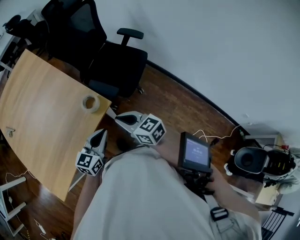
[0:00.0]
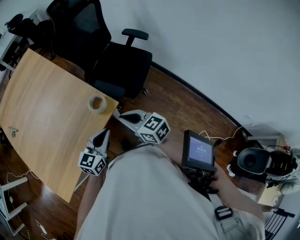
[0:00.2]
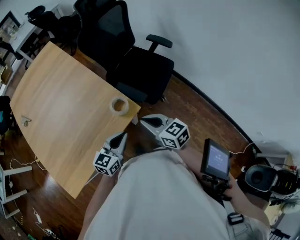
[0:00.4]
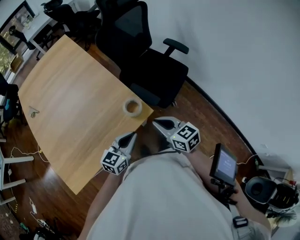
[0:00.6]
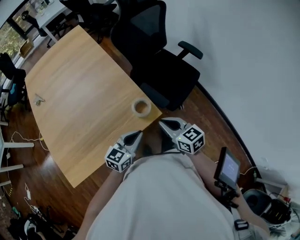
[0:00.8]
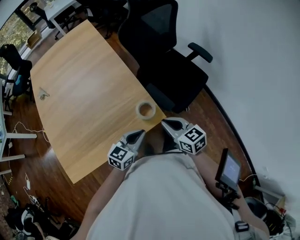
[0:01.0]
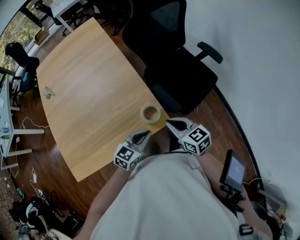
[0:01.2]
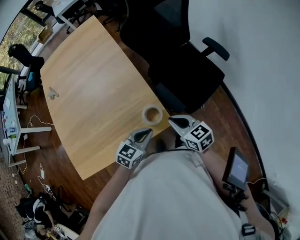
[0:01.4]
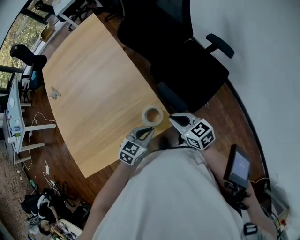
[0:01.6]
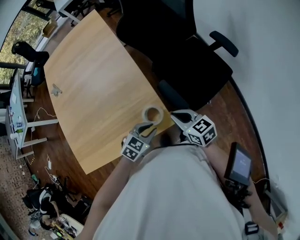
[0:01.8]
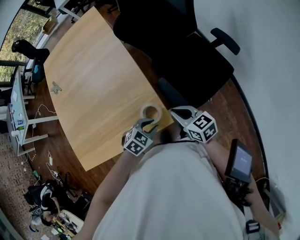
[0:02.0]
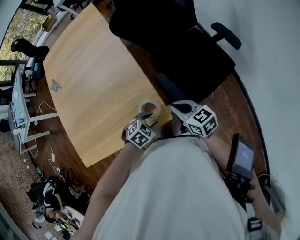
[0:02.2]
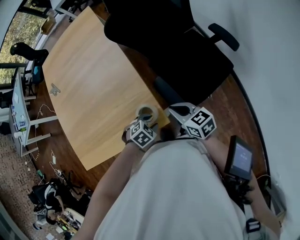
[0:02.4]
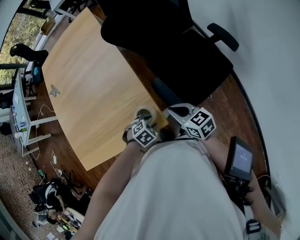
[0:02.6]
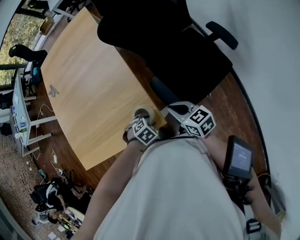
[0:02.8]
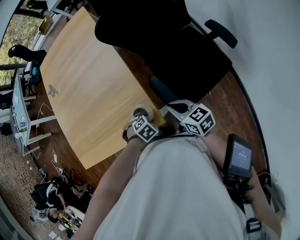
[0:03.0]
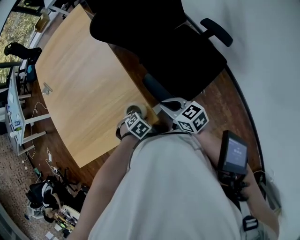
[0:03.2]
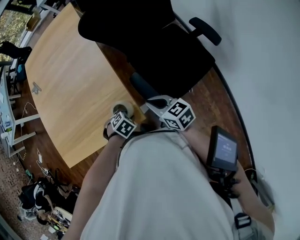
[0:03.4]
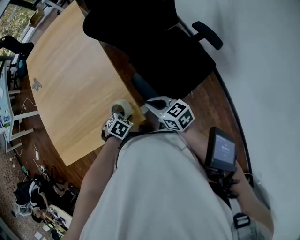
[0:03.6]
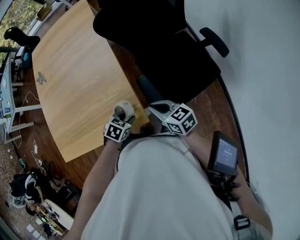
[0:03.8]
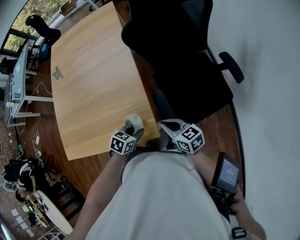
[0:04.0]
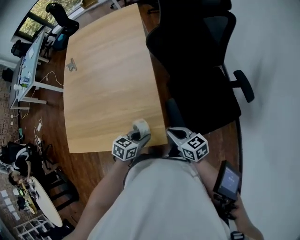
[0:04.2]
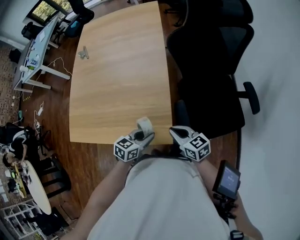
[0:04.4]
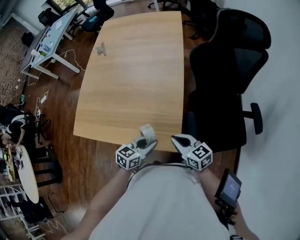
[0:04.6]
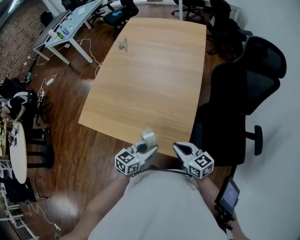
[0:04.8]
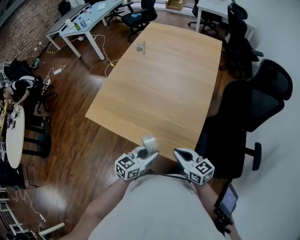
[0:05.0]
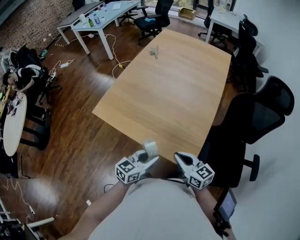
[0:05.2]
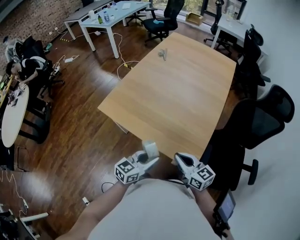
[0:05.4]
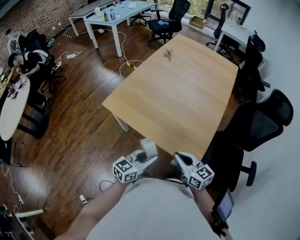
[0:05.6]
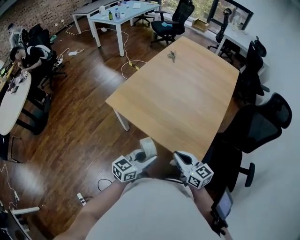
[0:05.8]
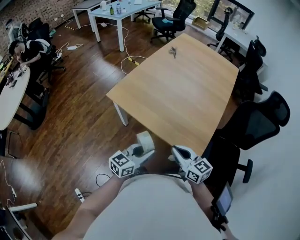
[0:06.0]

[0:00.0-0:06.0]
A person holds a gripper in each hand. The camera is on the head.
0:00.0 to 0:01.6: The right gripper travels forward by roughly 15 cm, while the left gripper shifts approximately 15 cm forward and downward, and changes its angle by about 20 degrees.
0:01.6 to 0:03.0: The right gripper changes place by roughly 10 cm; the left gripper is displaced downward by roughly 15 cm, angles its fingers downward, by about 40 degrees, and opens.
0:03.0 to 0:04.4: The left gripper shifts approximately 15 cm upward, and tips its fingers upward by about 50 degrees, while the right gripper moves about 10 cm.
0:04.4 to 0:06.0: The left gripper changes place by roughly 30 cm, and rotates approximately 40 degrees. The right gripper ends up about 30 cm from where it was, and changes its angle by roughly 30 degrees.

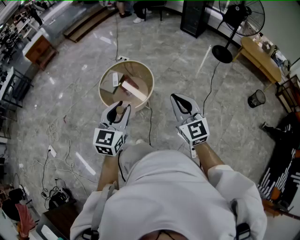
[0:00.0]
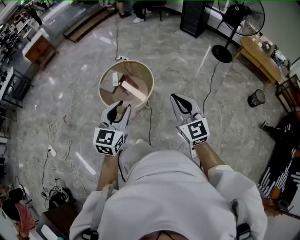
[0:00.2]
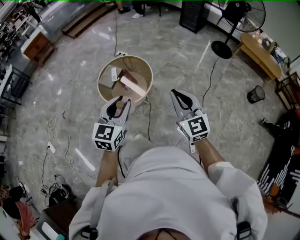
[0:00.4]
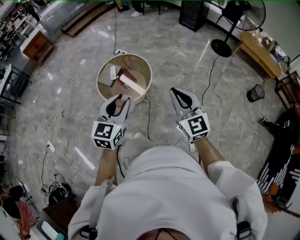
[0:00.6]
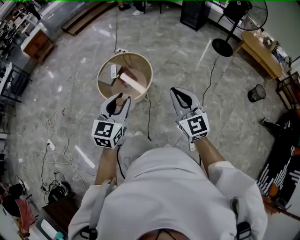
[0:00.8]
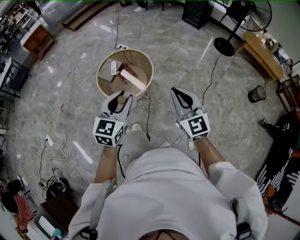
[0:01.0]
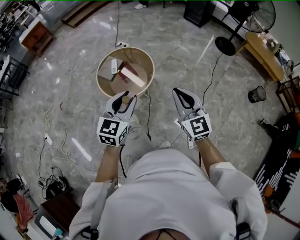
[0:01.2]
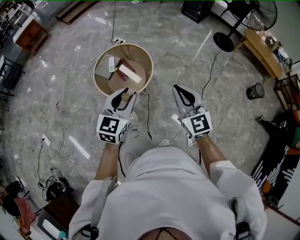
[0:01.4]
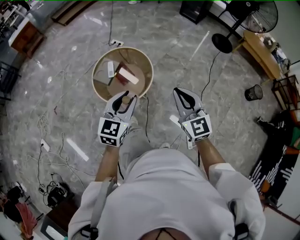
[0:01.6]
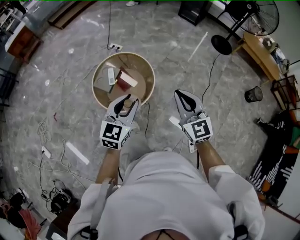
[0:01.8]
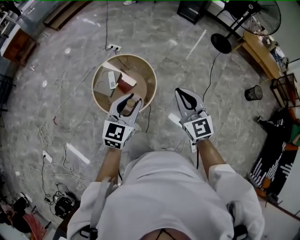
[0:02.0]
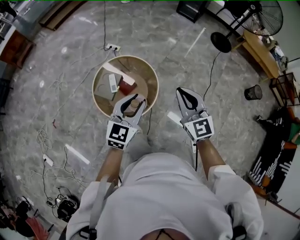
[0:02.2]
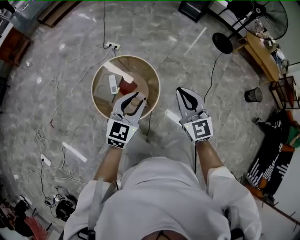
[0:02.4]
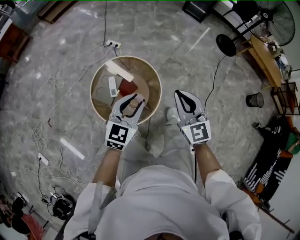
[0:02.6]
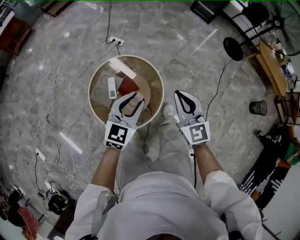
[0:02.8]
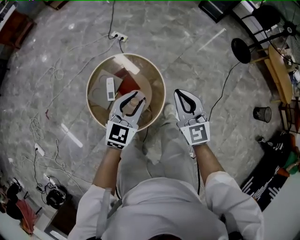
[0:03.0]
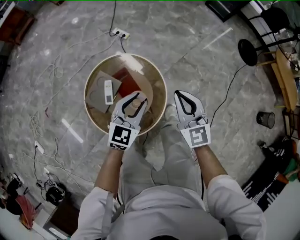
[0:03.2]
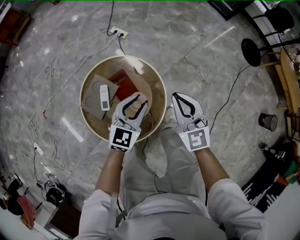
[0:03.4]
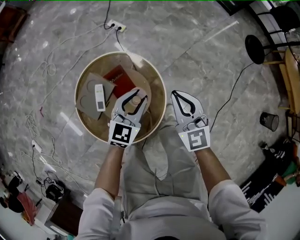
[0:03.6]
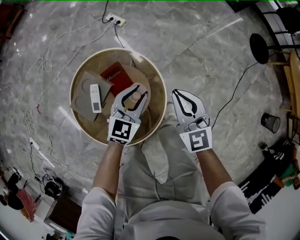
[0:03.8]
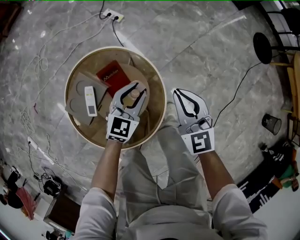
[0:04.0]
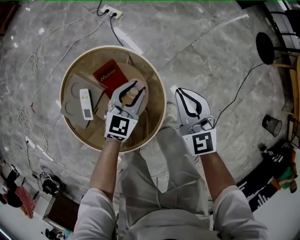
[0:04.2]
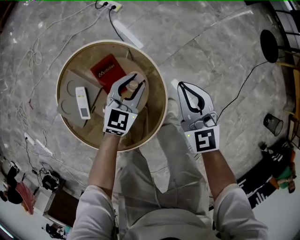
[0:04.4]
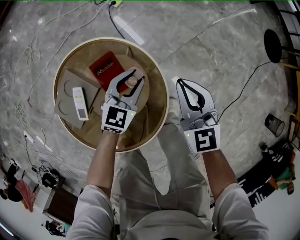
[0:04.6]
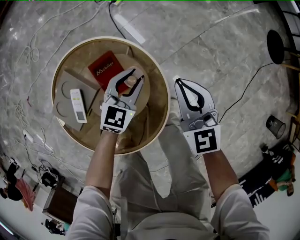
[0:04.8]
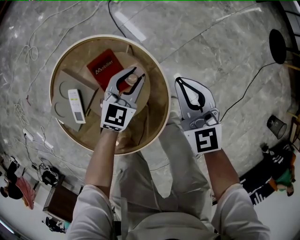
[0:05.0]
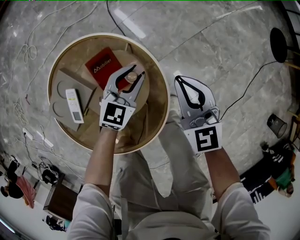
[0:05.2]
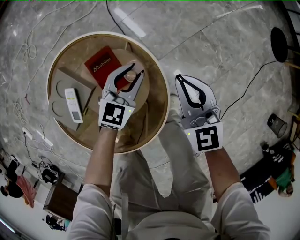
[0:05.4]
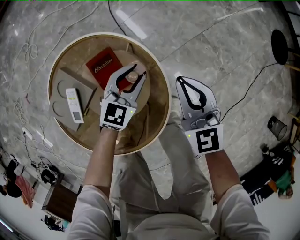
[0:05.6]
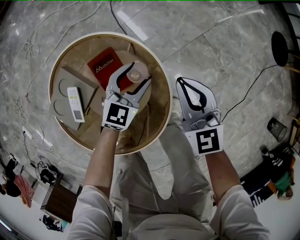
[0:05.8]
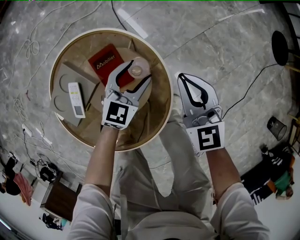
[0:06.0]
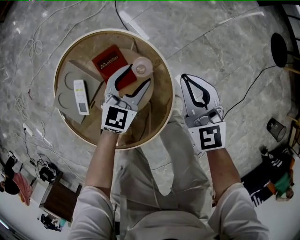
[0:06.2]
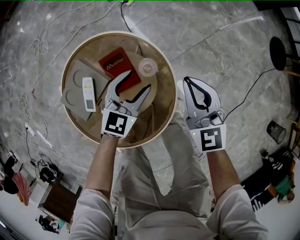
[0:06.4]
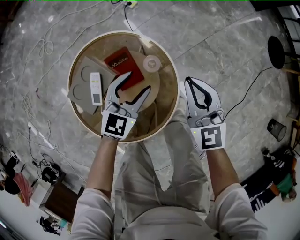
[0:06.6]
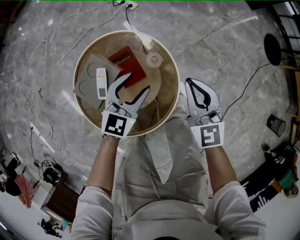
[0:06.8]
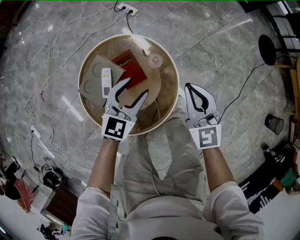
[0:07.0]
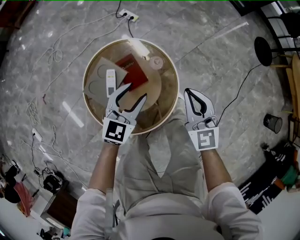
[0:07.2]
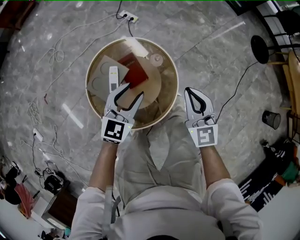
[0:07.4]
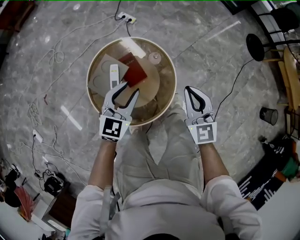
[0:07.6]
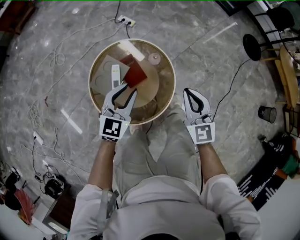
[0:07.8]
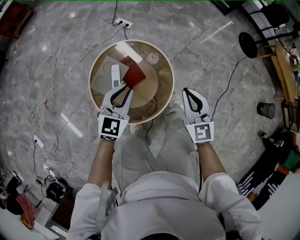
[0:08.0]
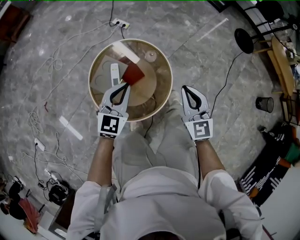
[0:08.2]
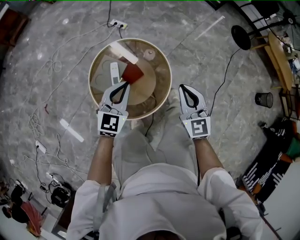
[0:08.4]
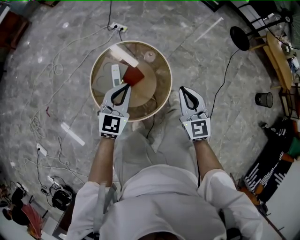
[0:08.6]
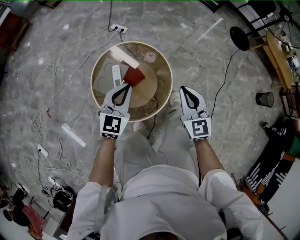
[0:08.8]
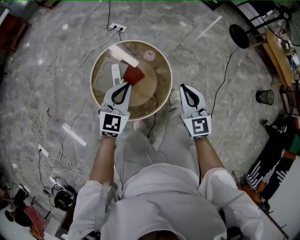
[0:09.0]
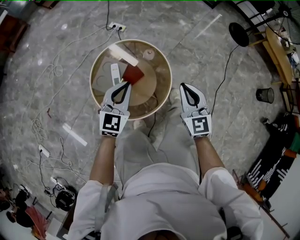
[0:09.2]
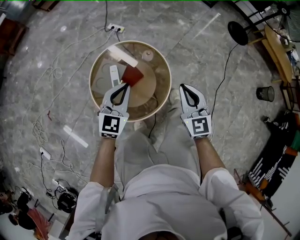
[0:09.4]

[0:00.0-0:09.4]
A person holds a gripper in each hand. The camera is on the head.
0:00.0 to 0:01.6: The left gripper moves forward and downward, roughly 15 cm, while the right gripper is displaced forward by approximately 10 cm.
0:01.6 to 0:03.2: The two grippers go some 50 cm forward and downward.
0:03.2 to 0:04.8: The two grippers go some 35 cm downward and forward.
0:04.8 to 0:06.2: The left gripper opens.
0:06.2 to 0:07.8: The right gripper shifts about 30 cm upward and backward, while the left gripper goes about 35 cm upward, backward and to the left, and closes its fingers.
0:07.8 to 0:09.4: The left gripper changes place by some 5 cm, and closes up. The right gripper goes roughly 5 cm backward.

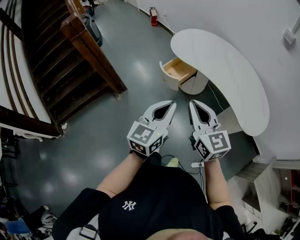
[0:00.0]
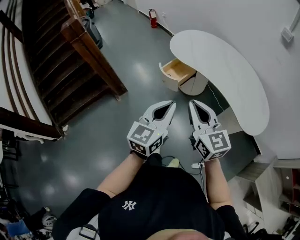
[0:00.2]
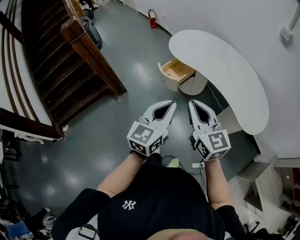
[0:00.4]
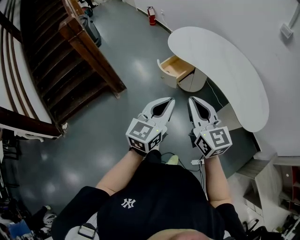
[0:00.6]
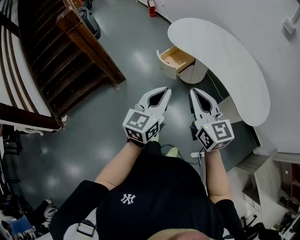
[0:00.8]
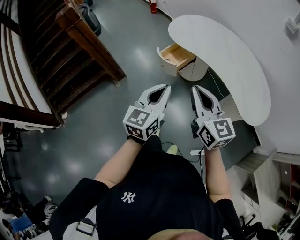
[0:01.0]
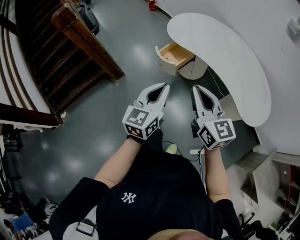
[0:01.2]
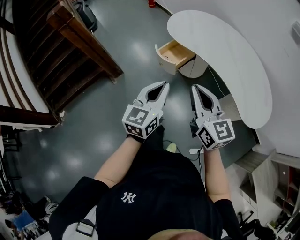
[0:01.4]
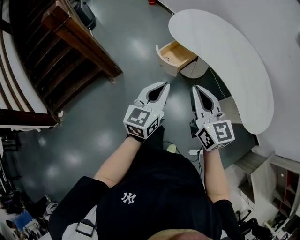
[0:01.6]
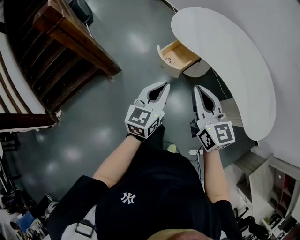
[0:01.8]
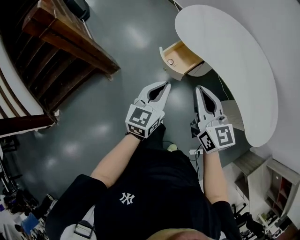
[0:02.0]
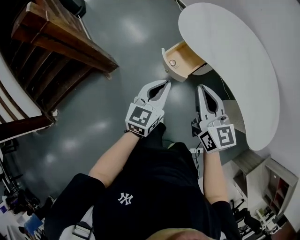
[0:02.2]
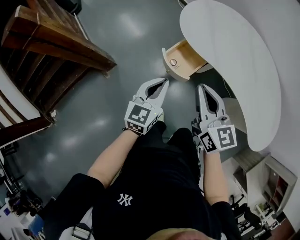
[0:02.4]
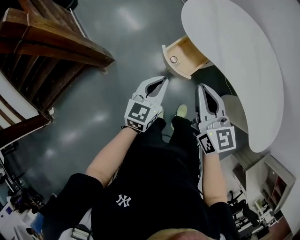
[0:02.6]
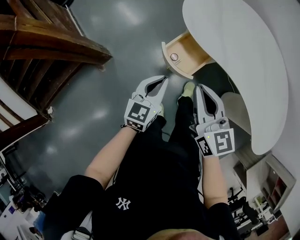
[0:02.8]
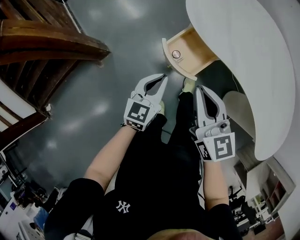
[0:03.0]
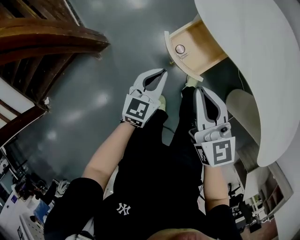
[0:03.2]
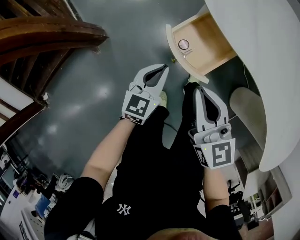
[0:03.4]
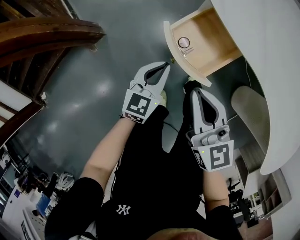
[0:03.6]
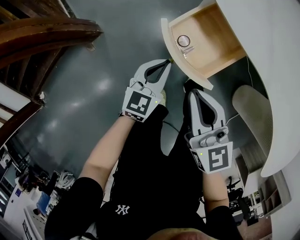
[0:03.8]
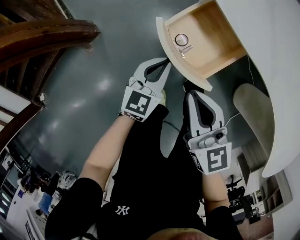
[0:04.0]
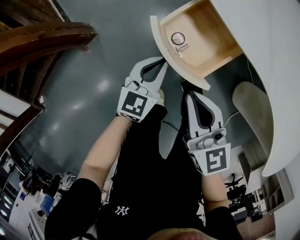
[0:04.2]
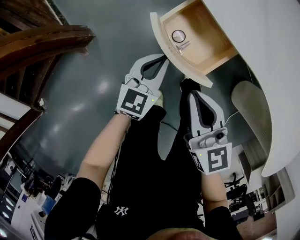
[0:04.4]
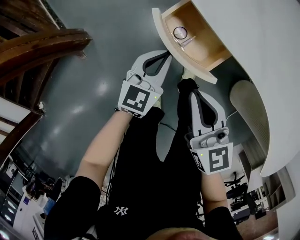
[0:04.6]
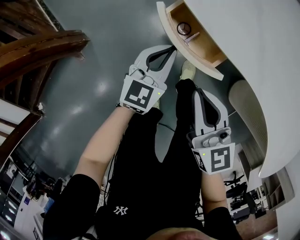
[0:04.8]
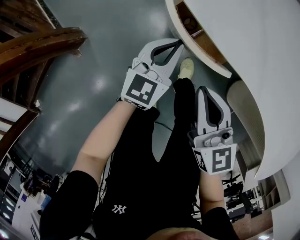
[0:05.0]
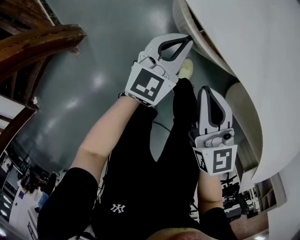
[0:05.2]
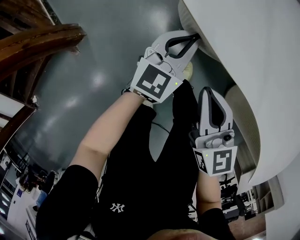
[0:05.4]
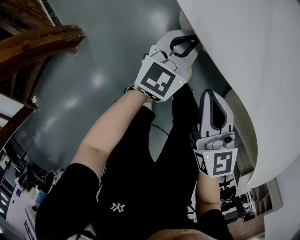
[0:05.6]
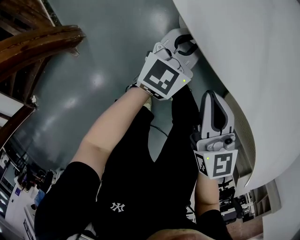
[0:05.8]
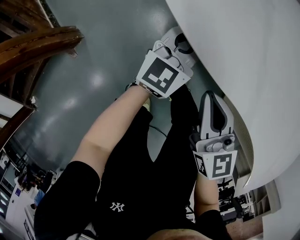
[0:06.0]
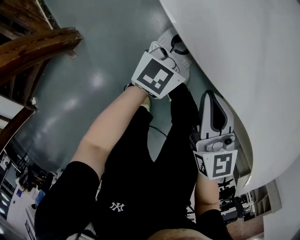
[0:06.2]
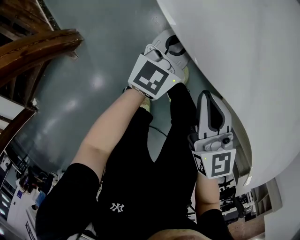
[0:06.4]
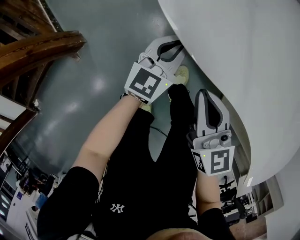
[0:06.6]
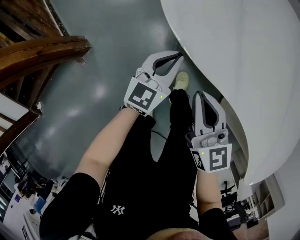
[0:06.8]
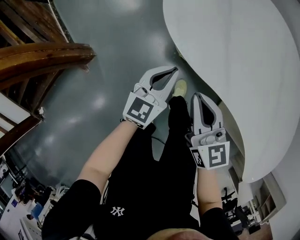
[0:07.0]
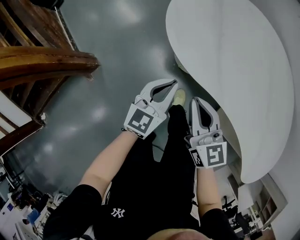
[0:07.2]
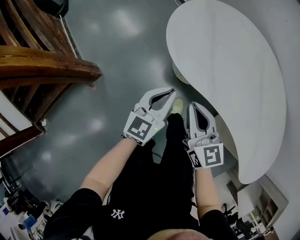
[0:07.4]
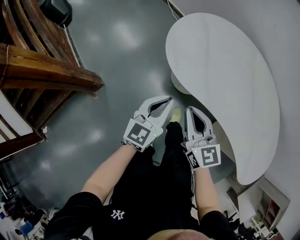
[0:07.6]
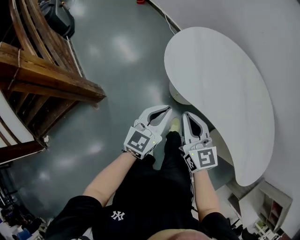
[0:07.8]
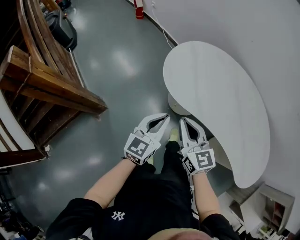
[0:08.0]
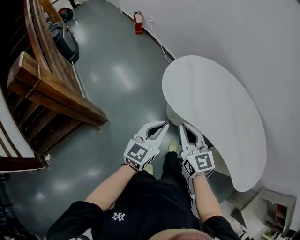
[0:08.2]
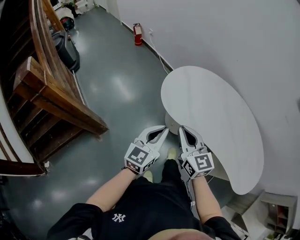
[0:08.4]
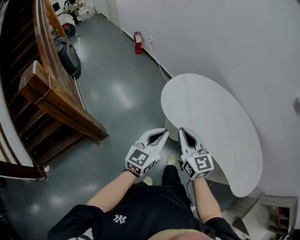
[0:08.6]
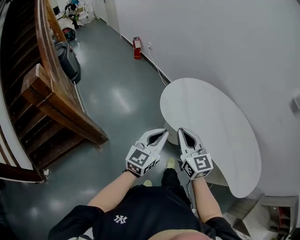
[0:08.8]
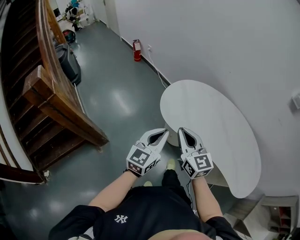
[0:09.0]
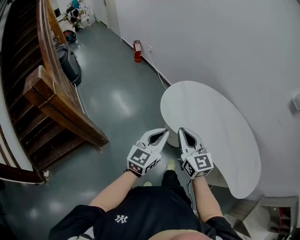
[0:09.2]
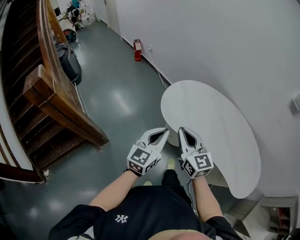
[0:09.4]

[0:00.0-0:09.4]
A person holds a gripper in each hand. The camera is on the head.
0:00.0 to 0:01.6: The left gripper goes about 15 cm forward and downward, while the right gripper is displaced forward by about 10 cm.
0:01.6 to 0:03.2: The right gripper goes some 40 cm forward and downward, while the left gripper is displaced downward and forward by about 50 cm.
0:03.2 to 0:04.8: The right gripper heads downward and to the right, covering about 15 cm, while the left gripper moves downward, forward and to the right, approximately 20 cm.
0:04.8 to 0:06.2: The right gripper heads forward and to the right, covering approximately 10 cm; the left gripper shifts roughly 15 cm forward and to the right.
0:06.2 to 0:07.8: The left gripper goes about 40 cm upward and backward. Meanwhile the right gripper is displaced upward by roughly 30 cm.
0:07.8 to 0:09.4: Both grippers move upward, some 15 cm.
